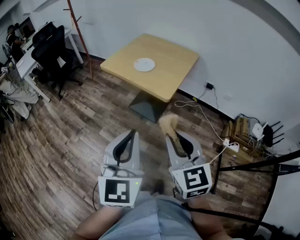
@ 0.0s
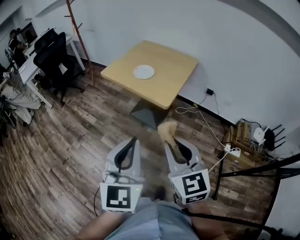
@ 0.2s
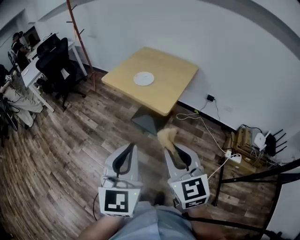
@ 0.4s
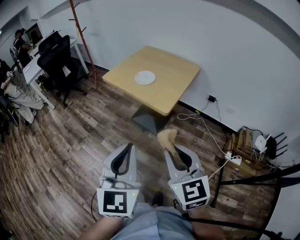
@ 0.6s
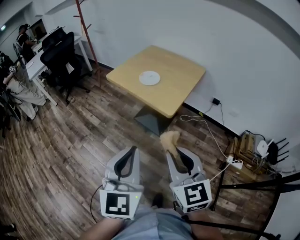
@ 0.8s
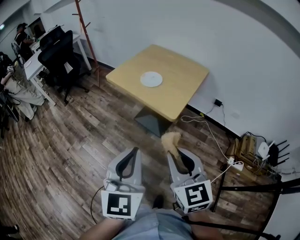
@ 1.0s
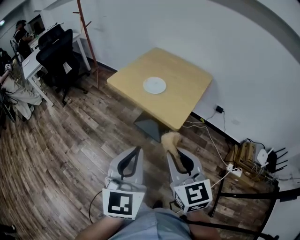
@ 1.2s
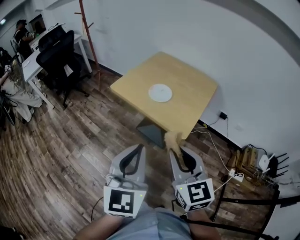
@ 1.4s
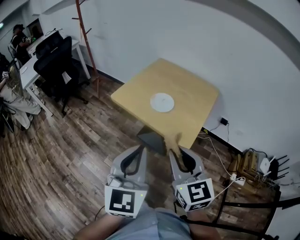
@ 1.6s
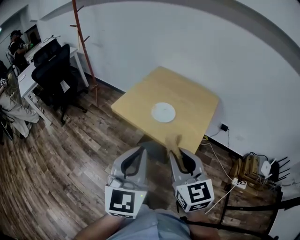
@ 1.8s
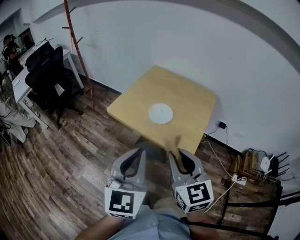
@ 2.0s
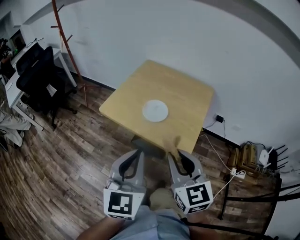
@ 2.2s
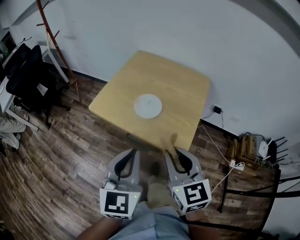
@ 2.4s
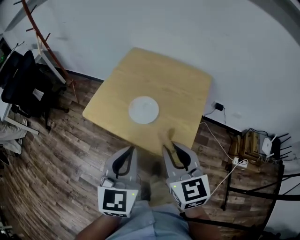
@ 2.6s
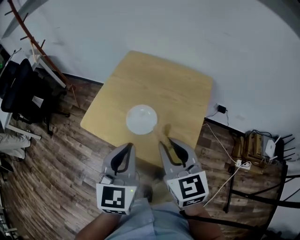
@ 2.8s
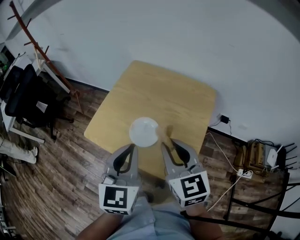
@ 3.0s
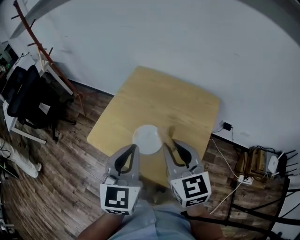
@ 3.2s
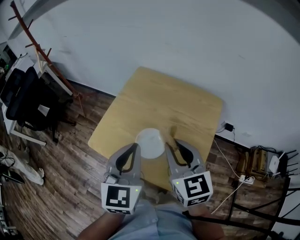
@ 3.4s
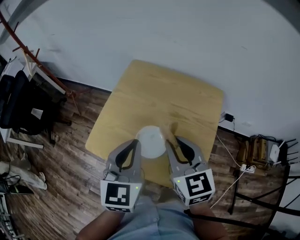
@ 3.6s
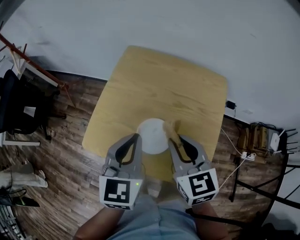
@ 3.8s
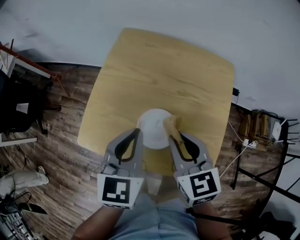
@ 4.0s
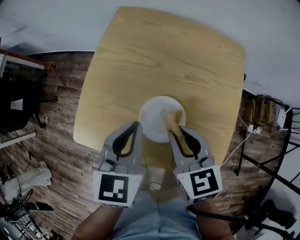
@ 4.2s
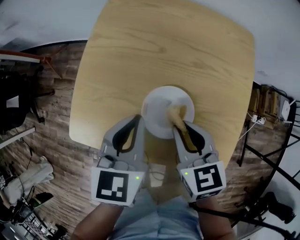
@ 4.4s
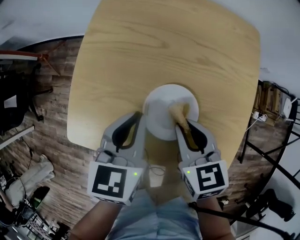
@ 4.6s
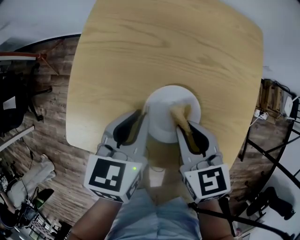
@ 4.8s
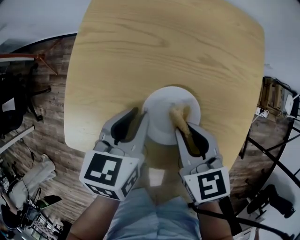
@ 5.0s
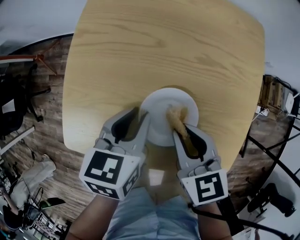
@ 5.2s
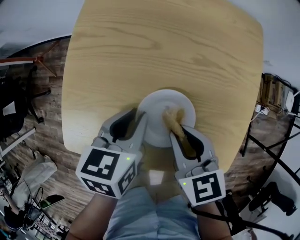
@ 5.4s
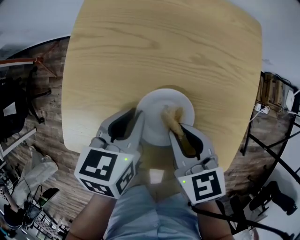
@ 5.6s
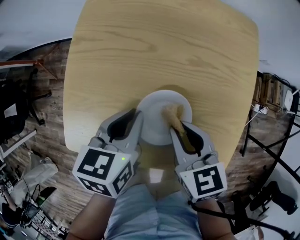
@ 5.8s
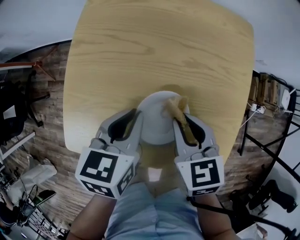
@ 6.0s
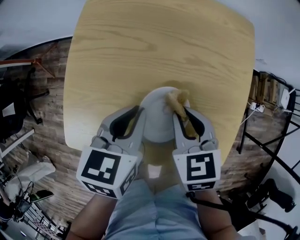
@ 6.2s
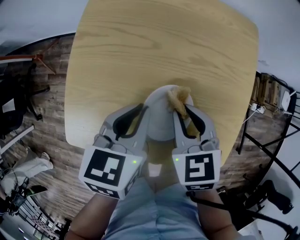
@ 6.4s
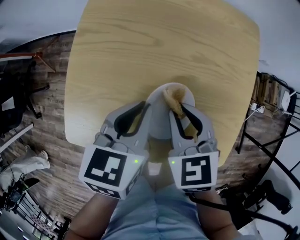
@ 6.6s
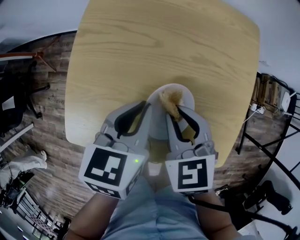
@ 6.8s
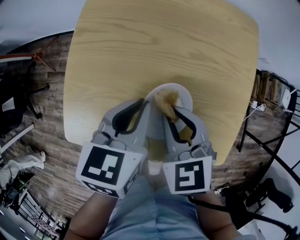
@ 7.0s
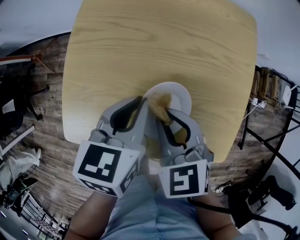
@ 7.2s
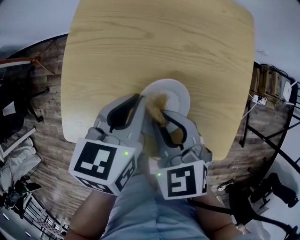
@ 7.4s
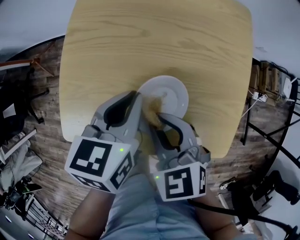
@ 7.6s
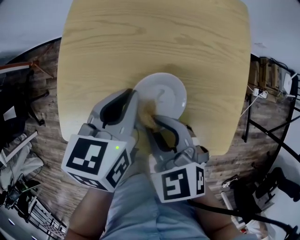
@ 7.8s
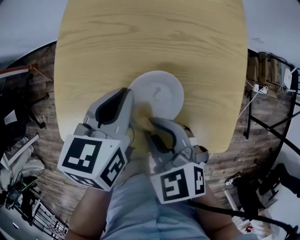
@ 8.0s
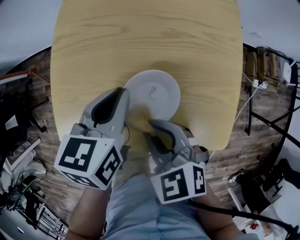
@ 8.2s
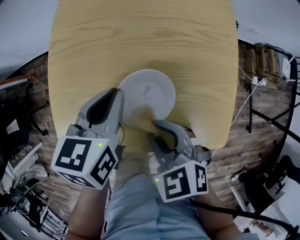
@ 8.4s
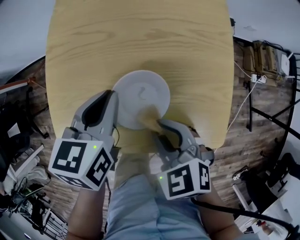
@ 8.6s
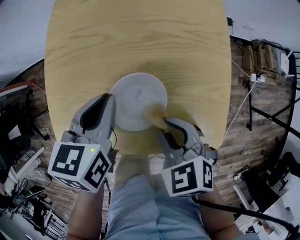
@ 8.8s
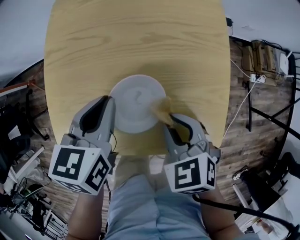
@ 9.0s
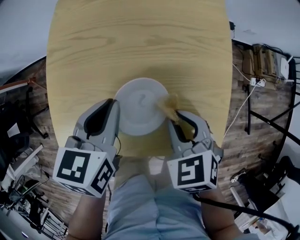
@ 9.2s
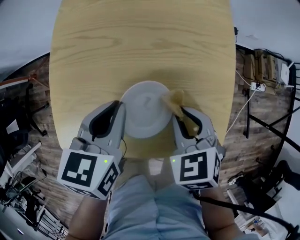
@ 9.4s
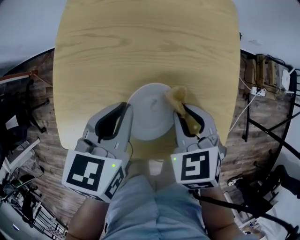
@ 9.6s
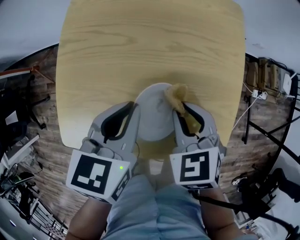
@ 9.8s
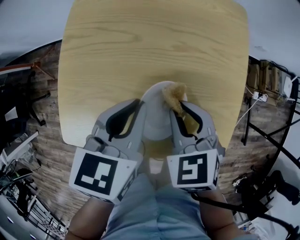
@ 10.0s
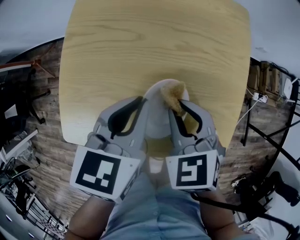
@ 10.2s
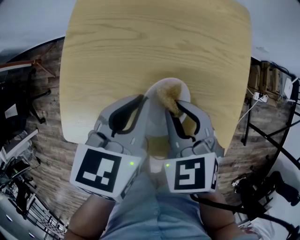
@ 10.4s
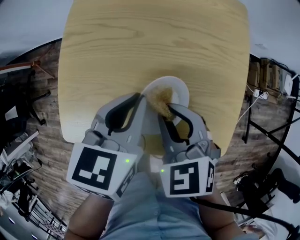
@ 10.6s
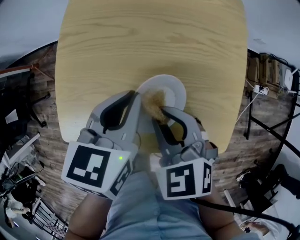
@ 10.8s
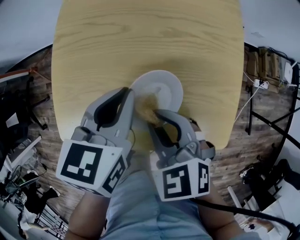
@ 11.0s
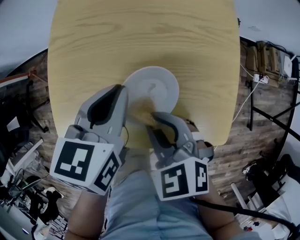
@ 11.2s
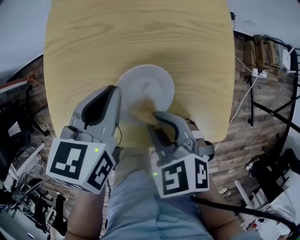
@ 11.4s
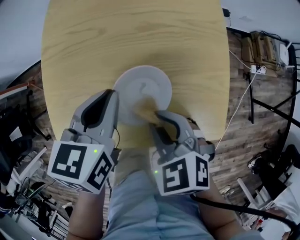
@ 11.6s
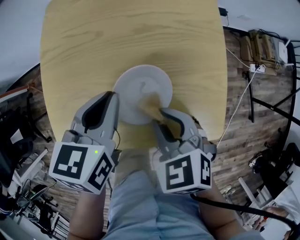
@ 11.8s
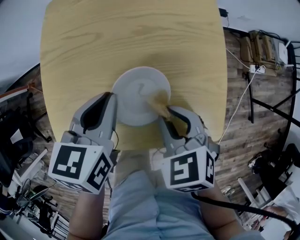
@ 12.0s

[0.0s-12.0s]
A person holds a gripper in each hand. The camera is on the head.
0.0s to 1.6s: Both grippers travel together forward, roughly 20 cm.
1.6s to 3.0s: Both grippers move forward, some 25 cm.
3.0s to 4.4s: The left gripper shifts approximately 20 cm downward and forward, and turns by approximately 30 degrees. The right gripper moves downward, approximately 20 cm, and changes its angle by some 30 degrees.
4.4s to 6.0s: The left gripper changes place by roughly 5 cm.
6.0s to 7.6s: The right gripper moves to the left, approximately 5 cm.
7.6s to 9.0s: The right gripper shifts some 10 cm to the right.
9.0s to 10.4s: The right gripper moves forward and to the left, roughly 10 cm.
10.4s to 12.0s: The right gripper moves backward and to the right, roughly 10 cm.

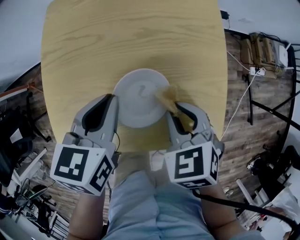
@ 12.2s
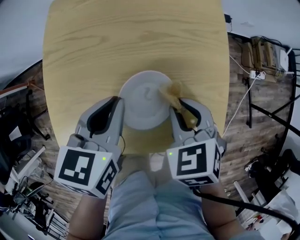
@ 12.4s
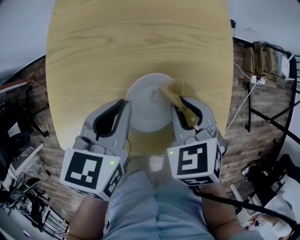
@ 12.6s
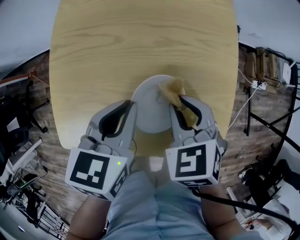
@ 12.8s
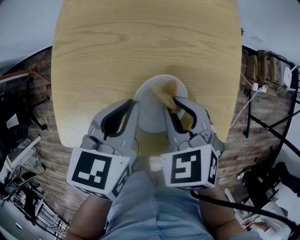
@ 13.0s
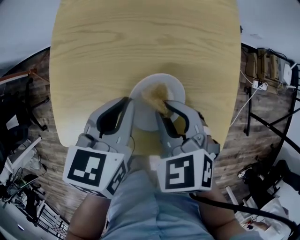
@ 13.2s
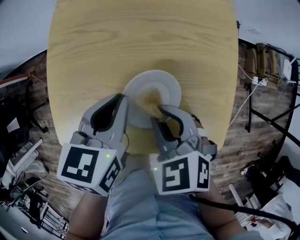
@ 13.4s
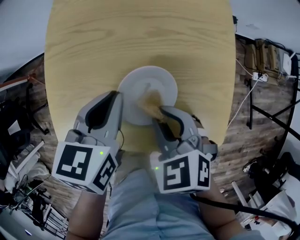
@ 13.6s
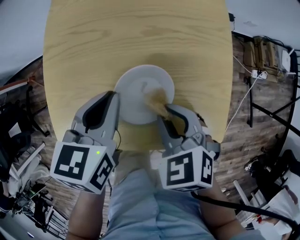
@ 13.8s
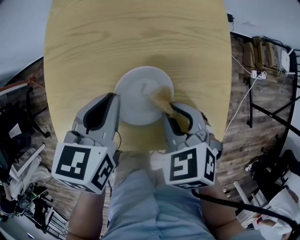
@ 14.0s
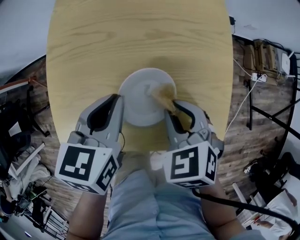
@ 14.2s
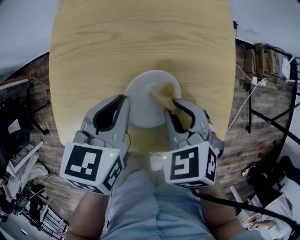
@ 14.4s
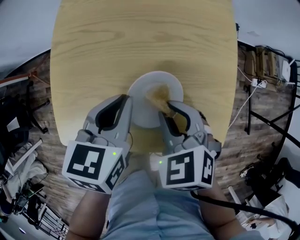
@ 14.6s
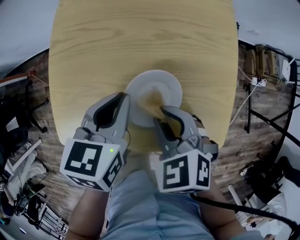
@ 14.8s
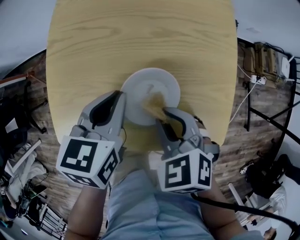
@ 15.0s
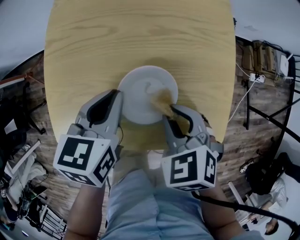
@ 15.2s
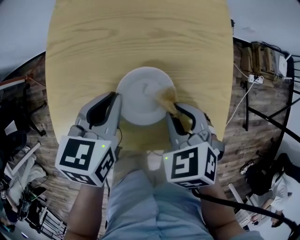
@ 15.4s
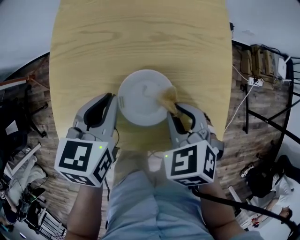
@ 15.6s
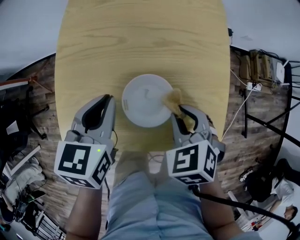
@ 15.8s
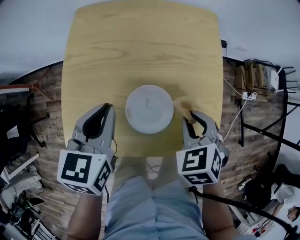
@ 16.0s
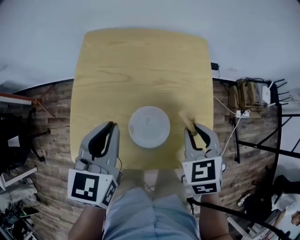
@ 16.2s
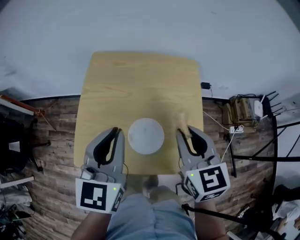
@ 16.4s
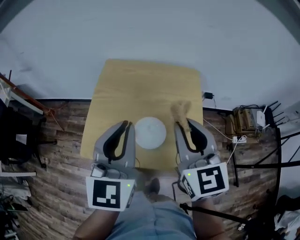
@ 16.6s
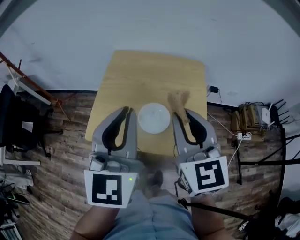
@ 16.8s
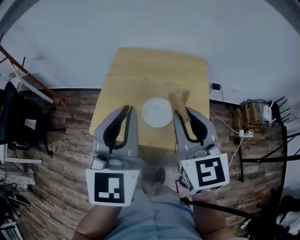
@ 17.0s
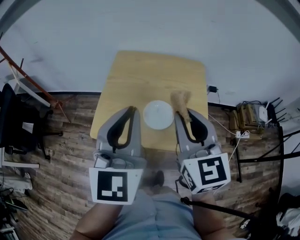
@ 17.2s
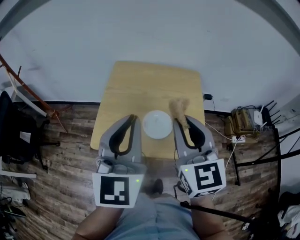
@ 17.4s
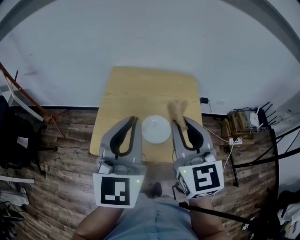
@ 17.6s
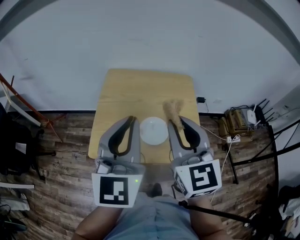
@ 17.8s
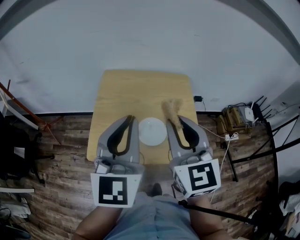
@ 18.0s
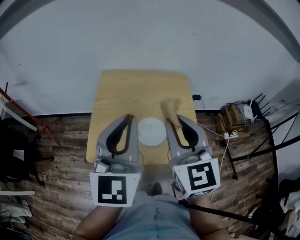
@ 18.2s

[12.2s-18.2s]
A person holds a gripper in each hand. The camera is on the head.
13.8s to 15.2s: The grippers move only a little.
15.2s to 16.6s: Both grippers travel together upward, roughly 25 cm. The right gripper tips its fingers upward by approximately 50 degrees; the left gripper tilts its fingers roughly 40 degrees upward.
16.6s to 18.2s: The left gripper goes roughly 5 cm upward. Meanwhile the right gripper shifts roughly 5 cm to the left.

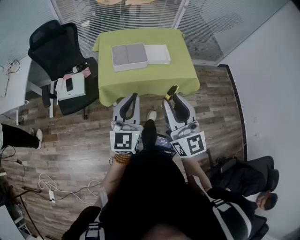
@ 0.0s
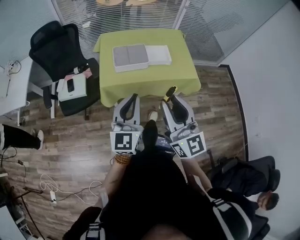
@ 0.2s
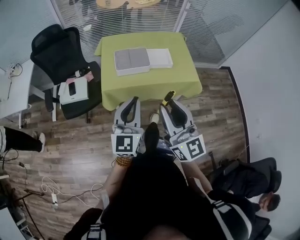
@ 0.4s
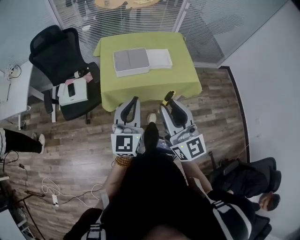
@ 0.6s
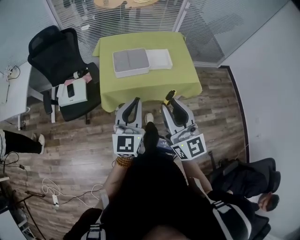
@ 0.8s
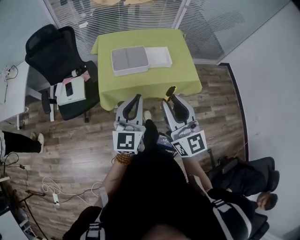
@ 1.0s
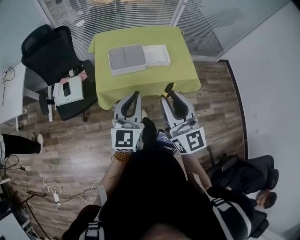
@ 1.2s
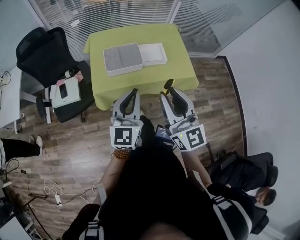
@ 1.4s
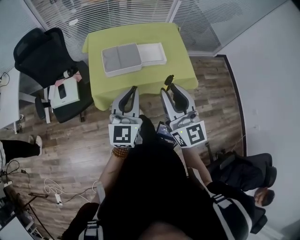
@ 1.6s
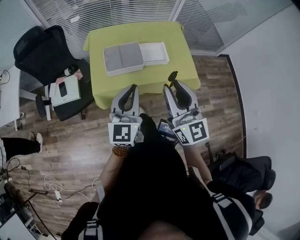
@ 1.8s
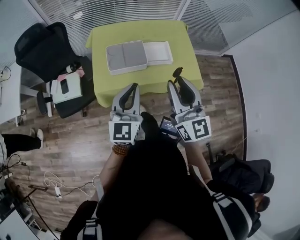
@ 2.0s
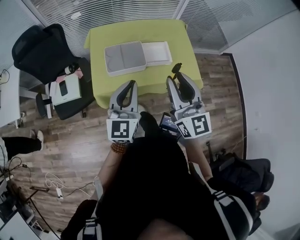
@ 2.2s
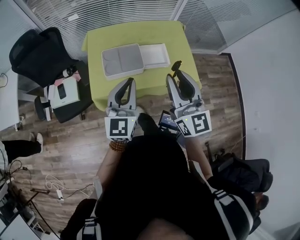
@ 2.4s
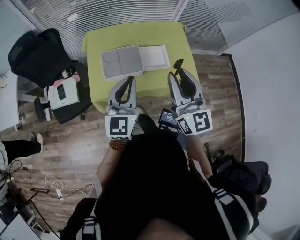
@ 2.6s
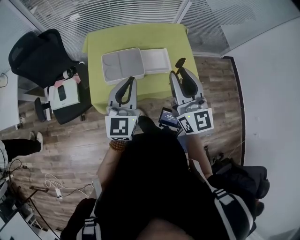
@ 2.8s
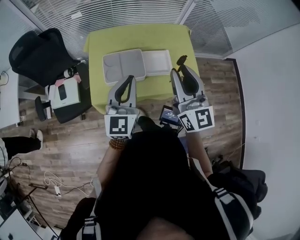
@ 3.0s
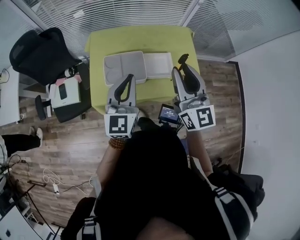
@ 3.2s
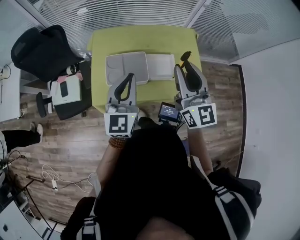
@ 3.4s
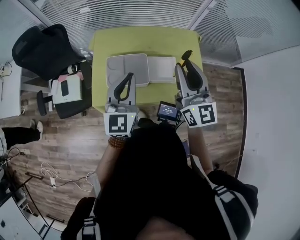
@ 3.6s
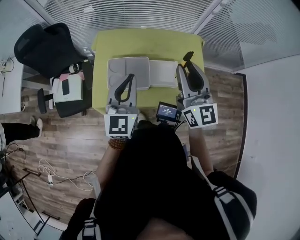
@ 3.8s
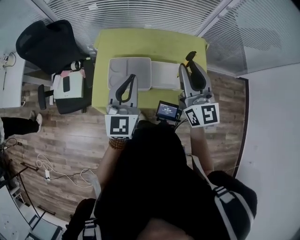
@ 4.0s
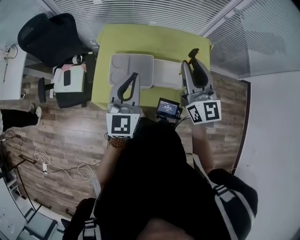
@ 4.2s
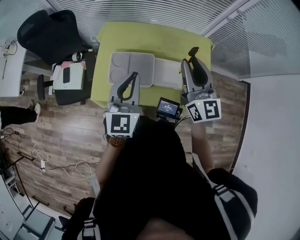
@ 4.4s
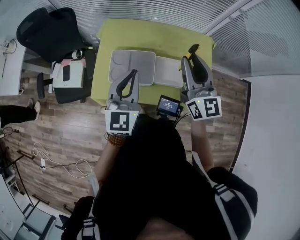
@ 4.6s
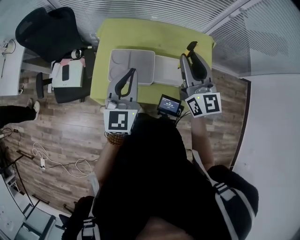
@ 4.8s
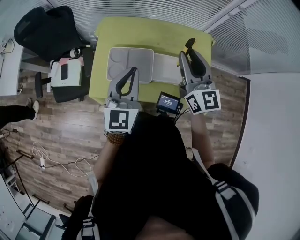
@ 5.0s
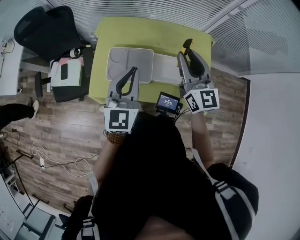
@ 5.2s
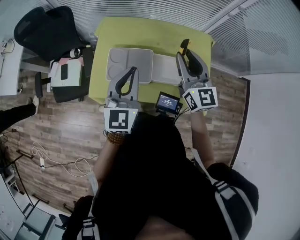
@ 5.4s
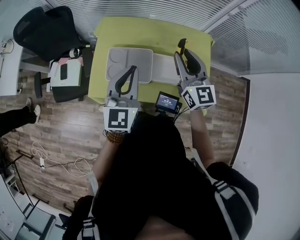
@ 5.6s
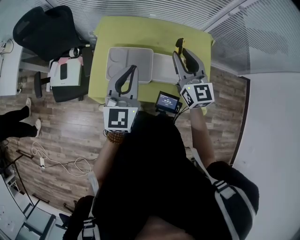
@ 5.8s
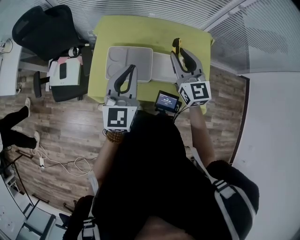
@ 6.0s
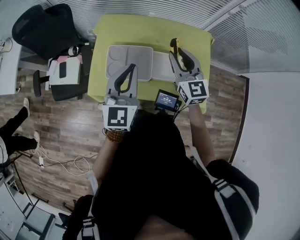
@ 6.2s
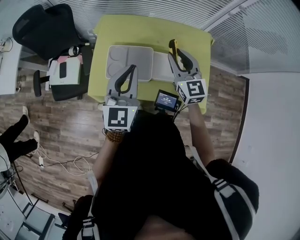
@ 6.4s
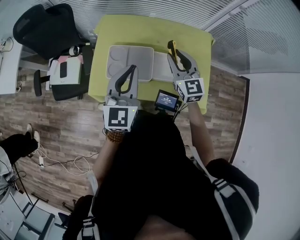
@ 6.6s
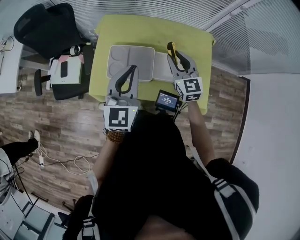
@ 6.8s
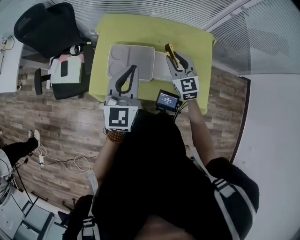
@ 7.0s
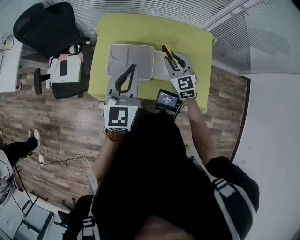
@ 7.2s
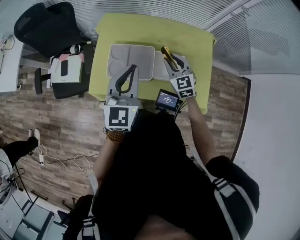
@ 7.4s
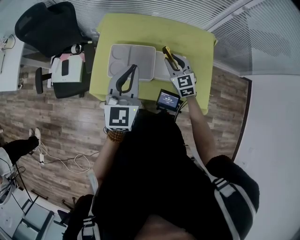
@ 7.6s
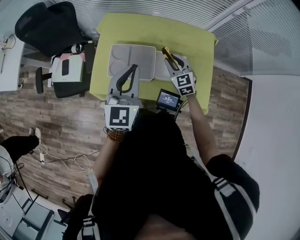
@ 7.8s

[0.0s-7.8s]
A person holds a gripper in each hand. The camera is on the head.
0.0s to 1.6s: Both grippers move forward, some 10 cm.
1.6s to 3.2s: Both grippers move forward, roughly 20 cm.
3.2s to 4.6s: The right gripper moves forward, about 15 cm; the left gripper shifts about 5 cm forward.
4.6s to 6.2s: The right gripper heads downward, covering some 10 cm.
6.2s to 7.8s: The right gripper is displaced downward by approximately 15 cm, and rotates approximately 20 degrees.
